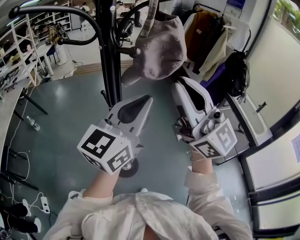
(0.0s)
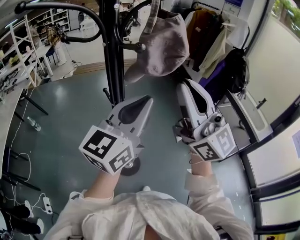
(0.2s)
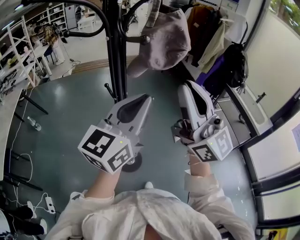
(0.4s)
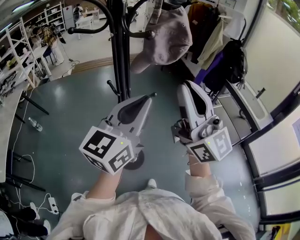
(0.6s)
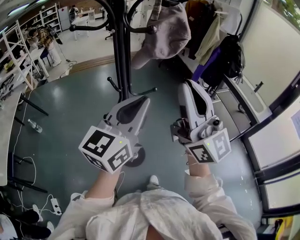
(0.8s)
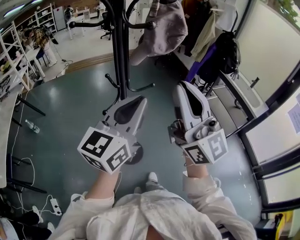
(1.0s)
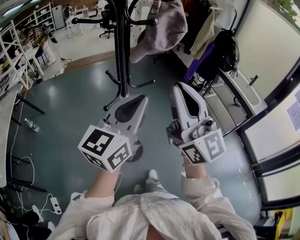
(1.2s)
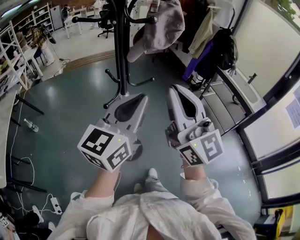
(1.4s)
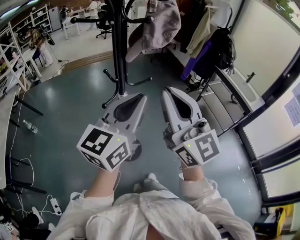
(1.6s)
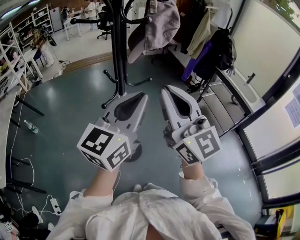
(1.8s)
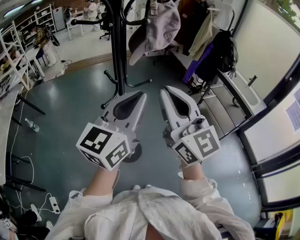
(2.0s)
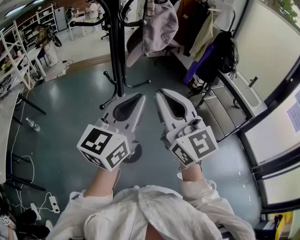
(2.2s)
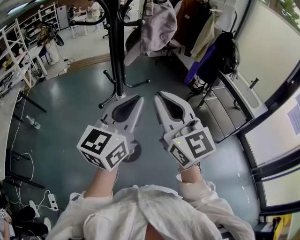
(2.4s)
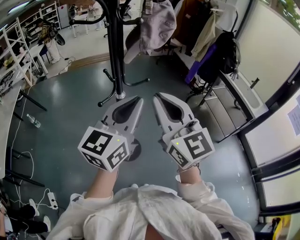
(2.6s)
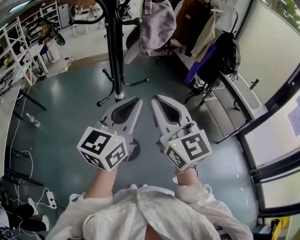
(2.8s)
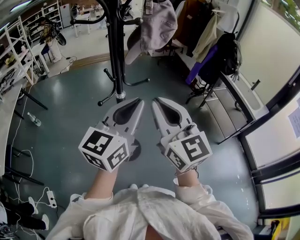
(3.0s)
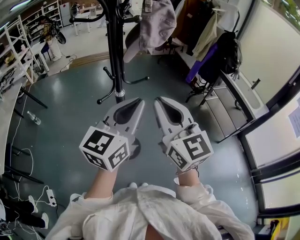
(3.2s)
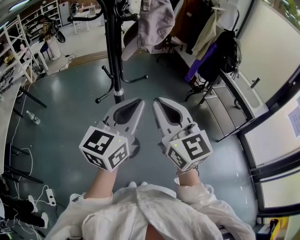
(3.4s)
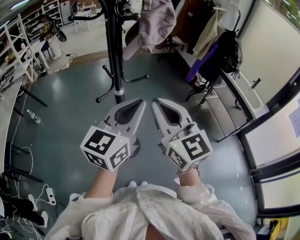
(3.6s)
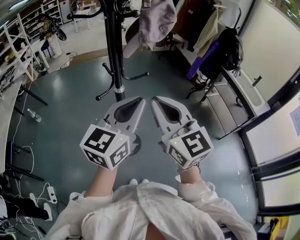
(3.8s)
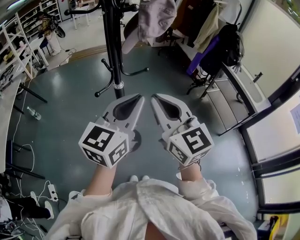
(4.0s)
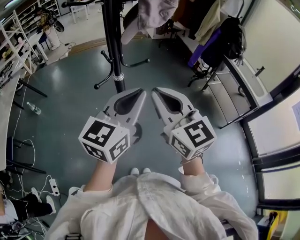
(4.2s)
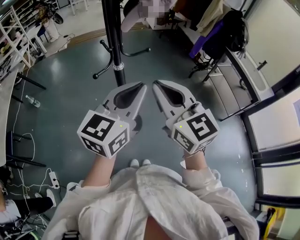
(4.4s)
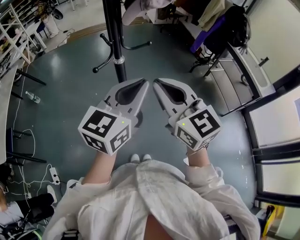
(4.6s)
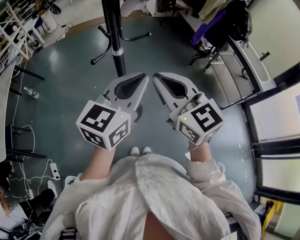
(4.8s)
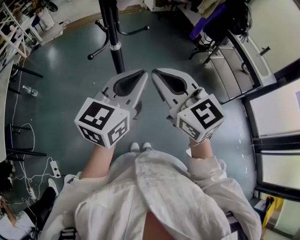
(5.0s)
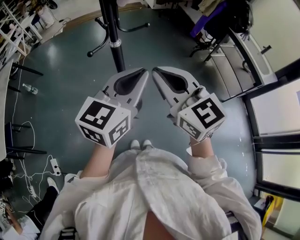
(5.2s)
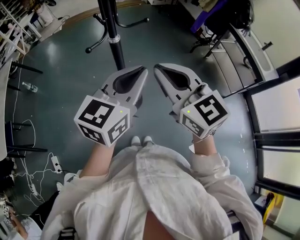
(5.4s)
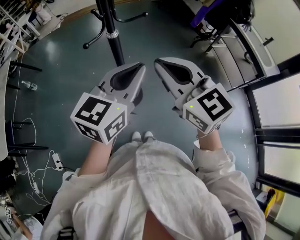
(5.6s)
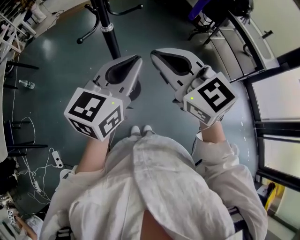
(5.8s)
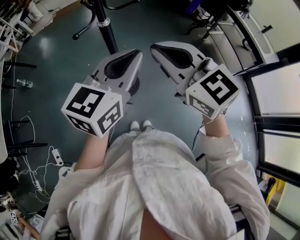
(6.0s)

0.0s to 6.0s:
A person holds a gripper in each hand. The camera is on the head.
0.0s to 1.6s: The right gripper shifts some 15 cm backward, downward and to the left, and turns by approximately 20 degrees; the left gripper travels backward and to the left by roughly 15 cm.
1.6s to 3.0s: The grippers make only small movements.
3.0s to 4.4s: Both grippers move downward, approximately 5 cm.
4.4s to 6.0s: The right gripper changes place by approximately 5 cm. The left gripper shifts roughly 5 cm downward.

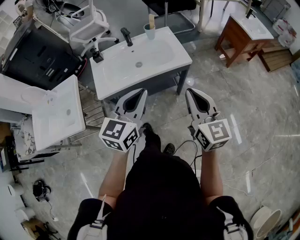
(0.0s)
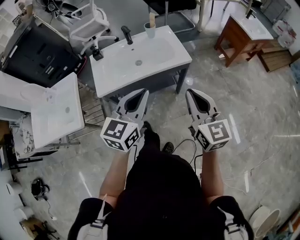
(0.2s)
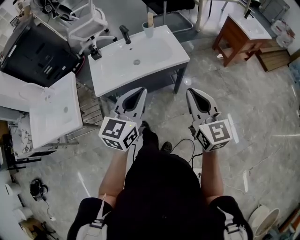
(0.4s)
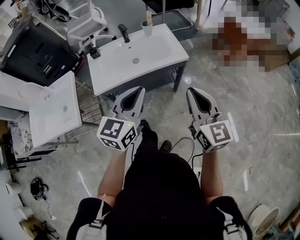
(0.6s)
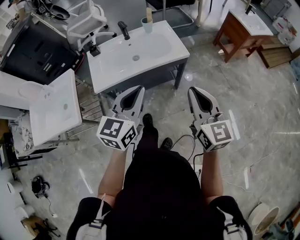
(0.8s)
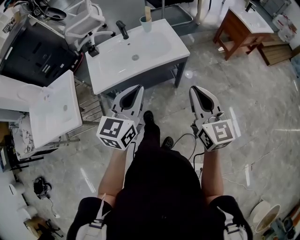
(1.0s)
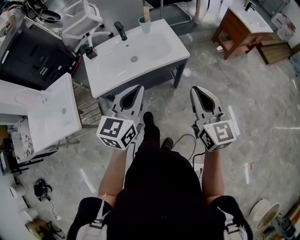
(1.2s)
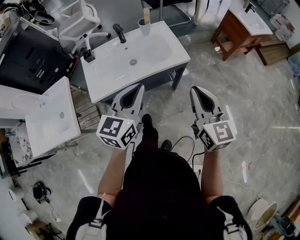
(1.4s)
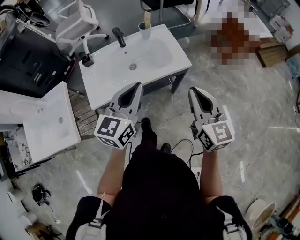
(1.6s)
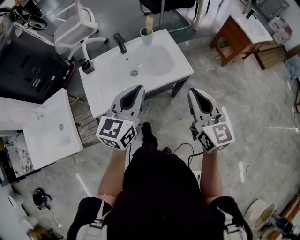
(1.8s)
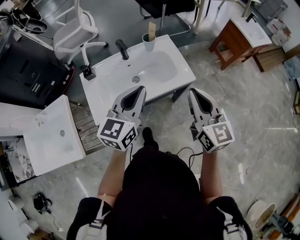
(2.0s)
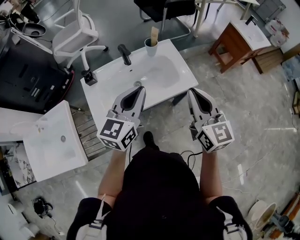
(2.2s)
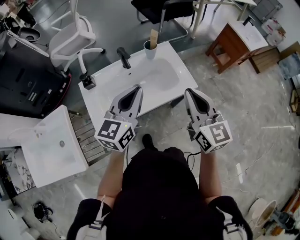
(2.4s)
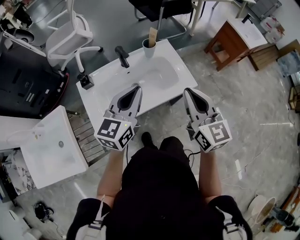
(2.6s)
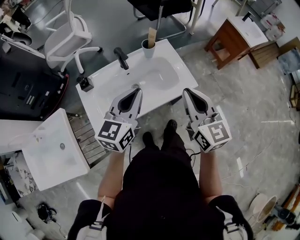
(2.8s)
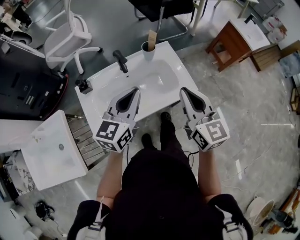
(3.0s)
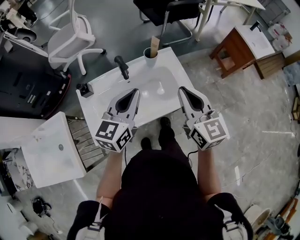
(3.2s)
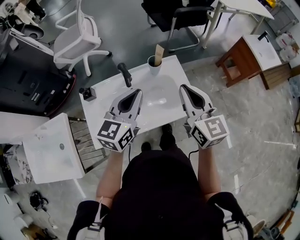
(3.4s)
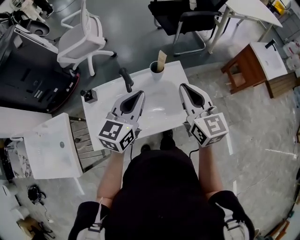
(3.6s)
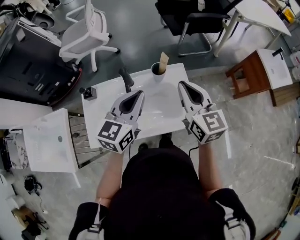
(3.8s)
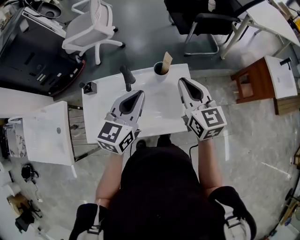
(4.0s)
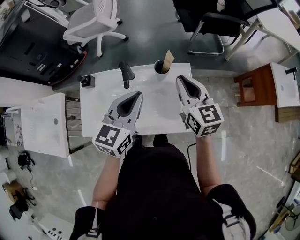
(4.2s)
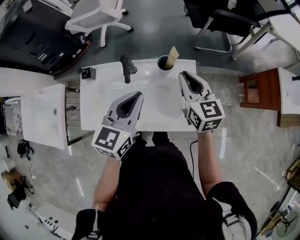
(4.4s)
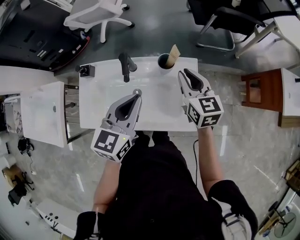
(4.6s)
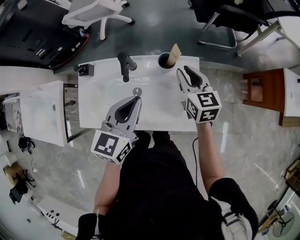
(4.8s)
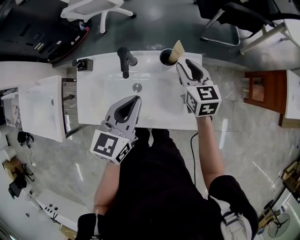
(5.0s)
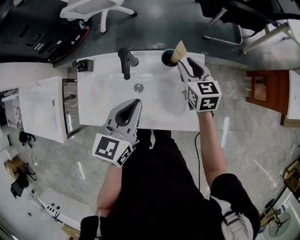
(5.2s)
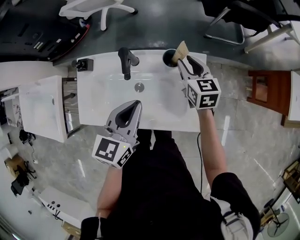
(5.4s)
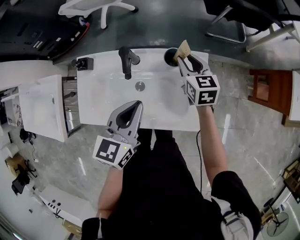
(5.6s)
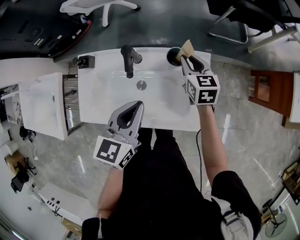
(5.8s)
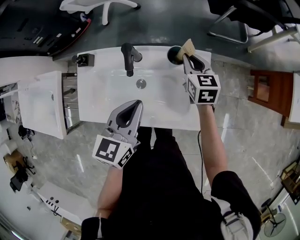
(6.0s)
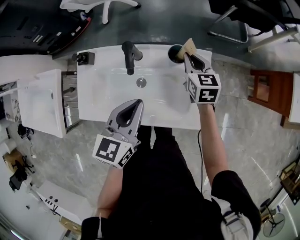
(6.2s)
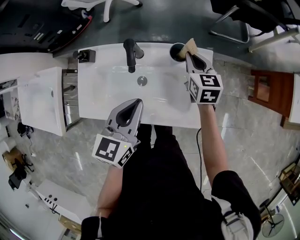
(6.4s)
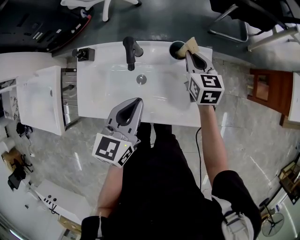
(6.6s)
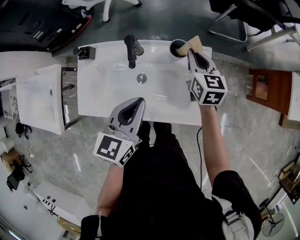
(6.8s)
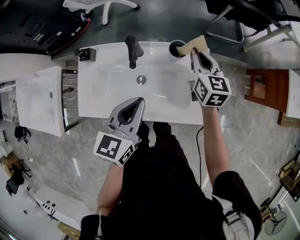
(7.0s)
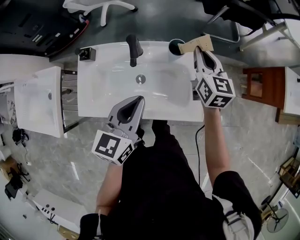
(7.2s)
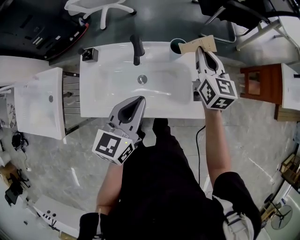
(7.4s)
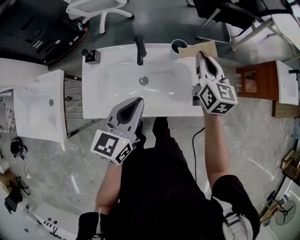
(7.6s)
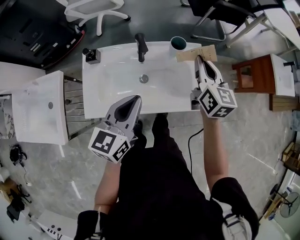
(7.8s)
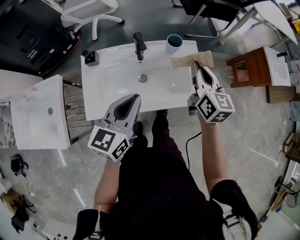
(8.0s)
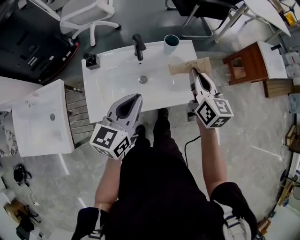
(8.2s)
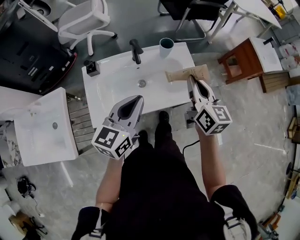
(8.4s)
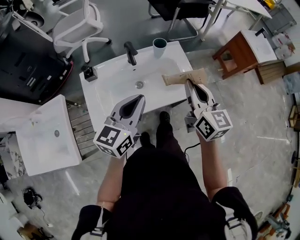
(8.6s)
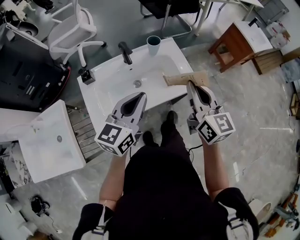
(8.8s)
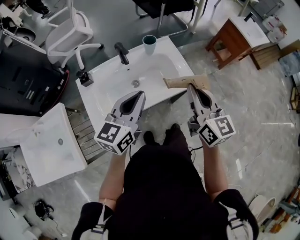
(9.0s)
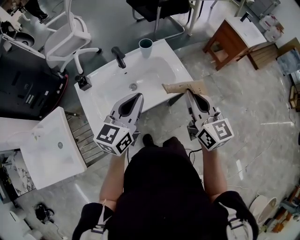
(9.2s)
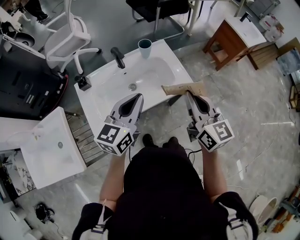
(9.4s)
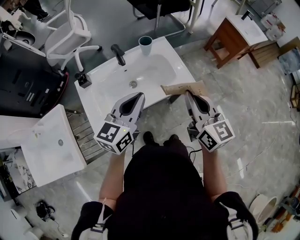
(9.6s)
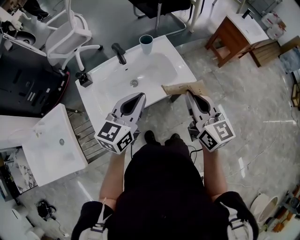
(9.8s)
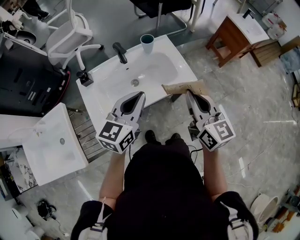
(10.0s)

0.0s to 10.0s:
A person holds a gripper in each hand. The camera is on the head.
0.0s to 1.4s: The left gripper shifts some 5 cm forward.
1.4s to 2.8s: The grippers both shift forward and to the left by approximately 20 cm.
2.8s to 4.2s: The left gripper goes approximately 15 cm forward, and swivels approximately 20 degrees. The right gripper shifts roughly 25 cm forward, and swivels some 20 degrees.
4.2s to 5.8s: The right gripper travels downward and forward by some 20 cm. Meanwhile the left gripper goes approximately 5 cm downward.
5.8s to 7.2s: The right gripper heads upward, covering about 10 cm.
7.2s to 8.6s: The left gripper goes some 15 cm backward, to the left and upward, and swivels approximately 30 degrees; the right gripper travels backward by approximately 30 cm.
8.6s to 10.0s: The right gripper is displaced backward by approximately 10 cm.

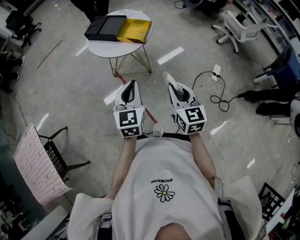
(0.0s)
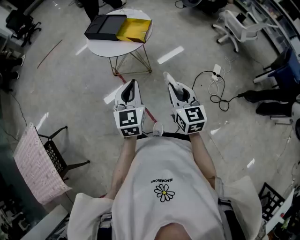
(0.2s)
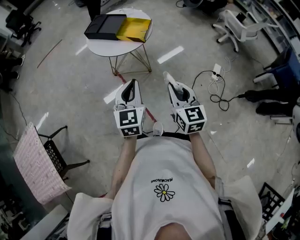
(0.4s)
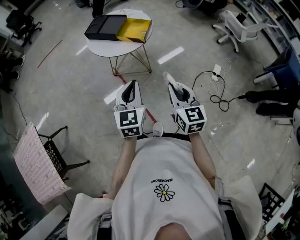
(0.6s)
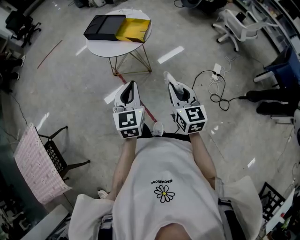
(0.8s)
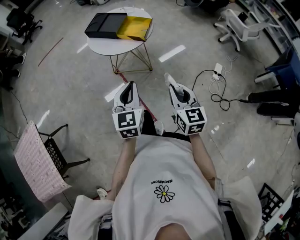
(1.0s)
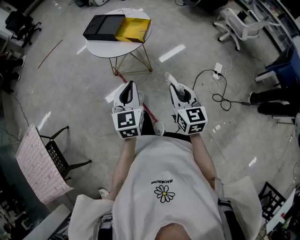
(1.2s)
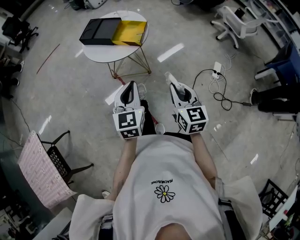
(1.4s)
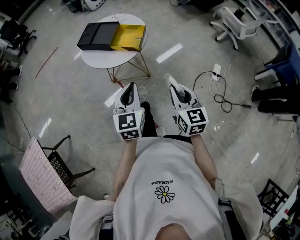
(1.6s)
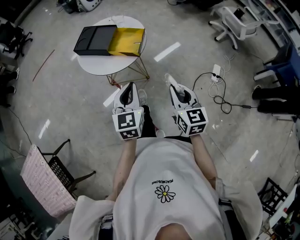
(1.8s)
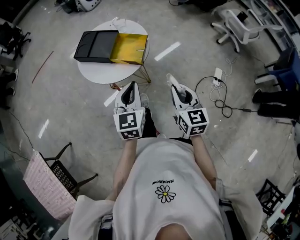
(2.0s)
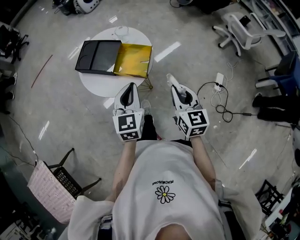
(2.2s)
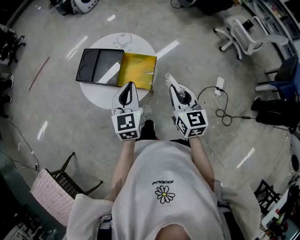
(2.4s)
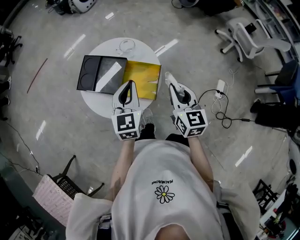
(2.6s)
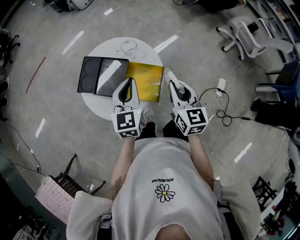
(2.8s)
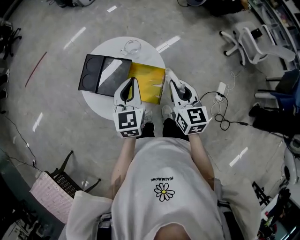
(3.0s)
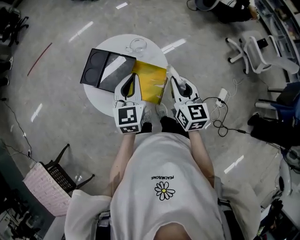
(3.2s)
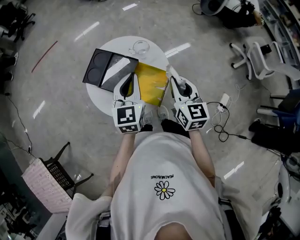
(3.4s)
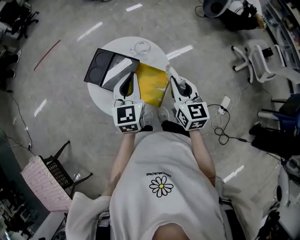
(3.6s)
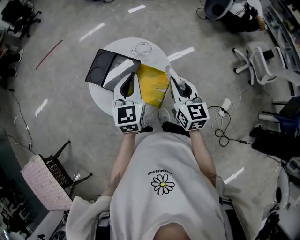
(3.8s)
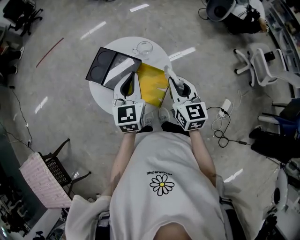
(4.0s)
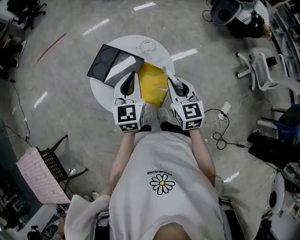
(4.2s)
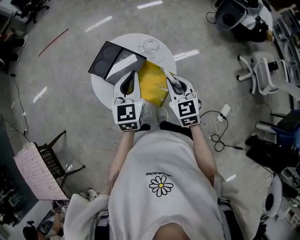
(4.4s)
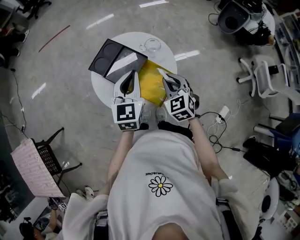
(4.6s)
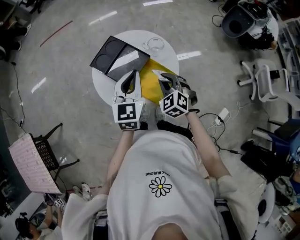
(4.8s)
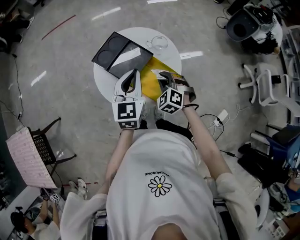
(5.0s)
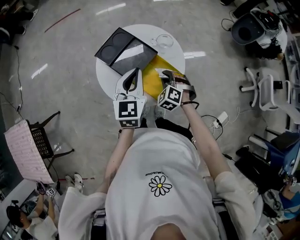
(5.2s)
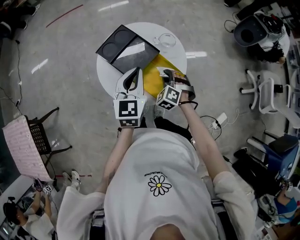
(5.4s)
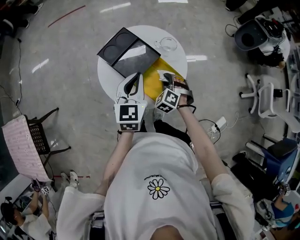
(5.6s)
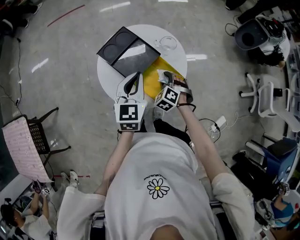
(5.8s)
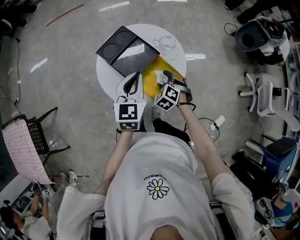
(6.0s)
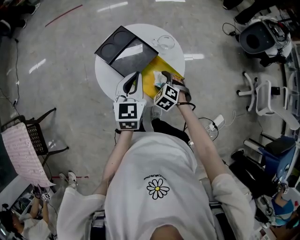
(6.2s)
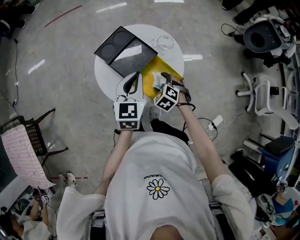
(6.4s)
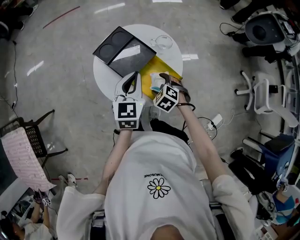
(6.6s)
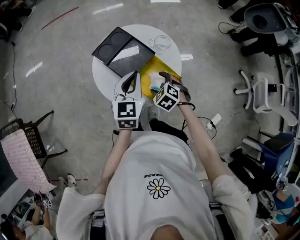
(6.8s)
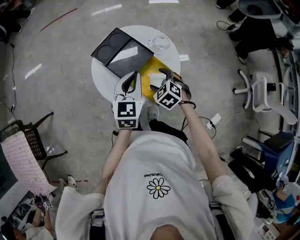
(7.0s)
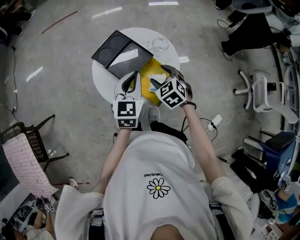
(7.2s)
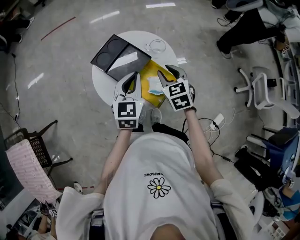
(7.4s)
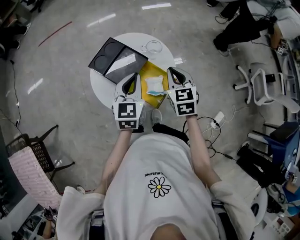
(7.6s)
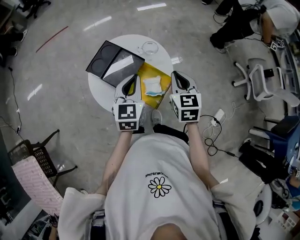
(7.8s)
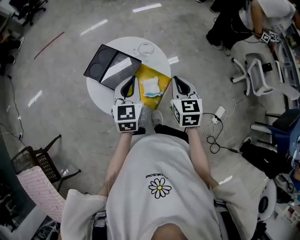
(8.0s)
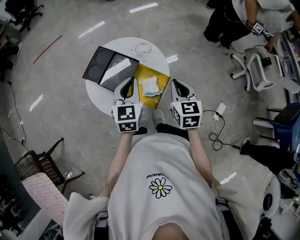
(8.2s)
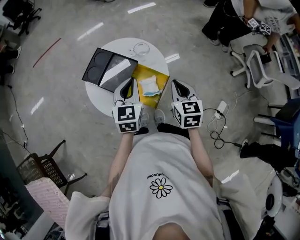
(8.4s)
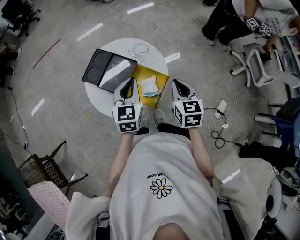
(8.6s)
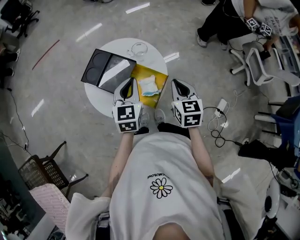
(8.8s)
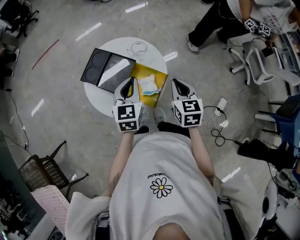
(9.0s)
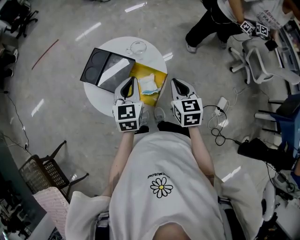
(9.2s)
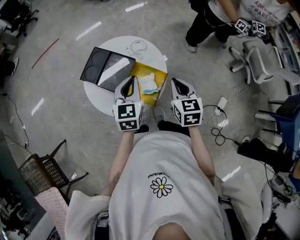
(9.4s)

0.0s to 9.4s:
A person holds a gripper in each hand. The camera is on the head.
0.0s to 1.6s: Both grippers travel together forward, approximately 5 cm.
1.6s to 3.2s: The pair of grippers is taken forward, about 40 cm.
3.2s to 4.8s: The right gripper travels downward and to the left by about 15 cm, and rotates around the line of its fingers by roughly 50 degrees, counterclockwise from behind.
4.8s to 6.2s: The right gripper goes roughly 10 cm downward, rotates some 20 degrees, and opens its fingers.
6.2s to 7.8s: The right gripper shifts about 20 cm upward and to the right, tips its fingers upward by roughly 30 degrees, and closes its fingers.
7.8s to 9.4s: The right gripper ends up some 5 cm from where it was.
